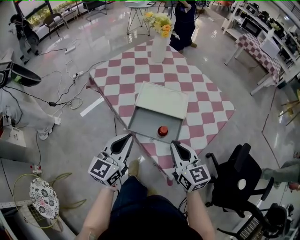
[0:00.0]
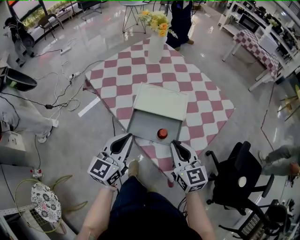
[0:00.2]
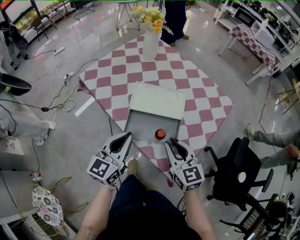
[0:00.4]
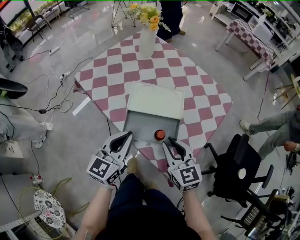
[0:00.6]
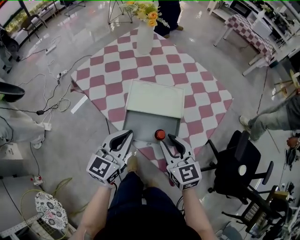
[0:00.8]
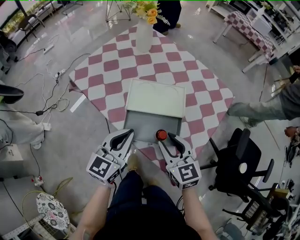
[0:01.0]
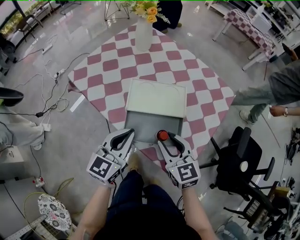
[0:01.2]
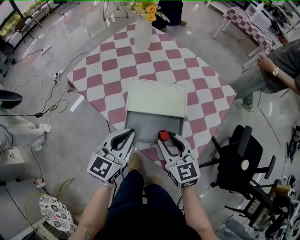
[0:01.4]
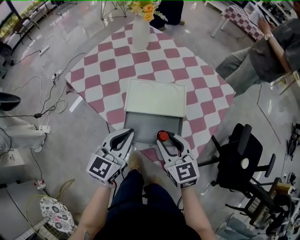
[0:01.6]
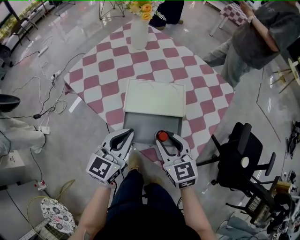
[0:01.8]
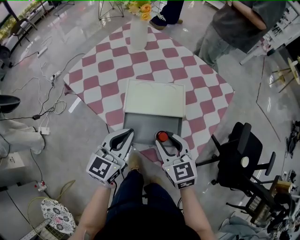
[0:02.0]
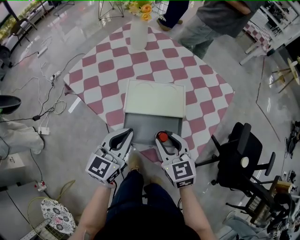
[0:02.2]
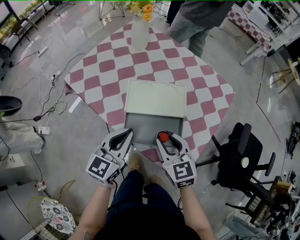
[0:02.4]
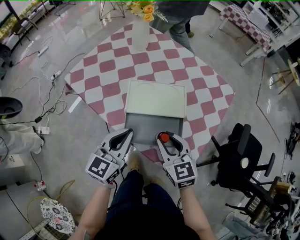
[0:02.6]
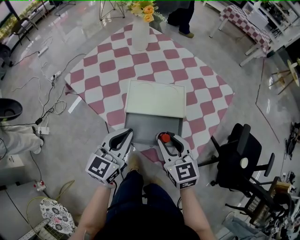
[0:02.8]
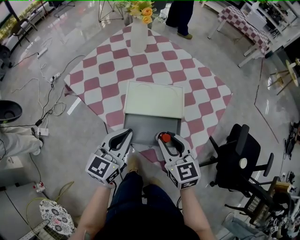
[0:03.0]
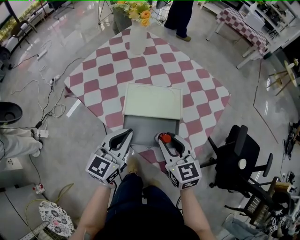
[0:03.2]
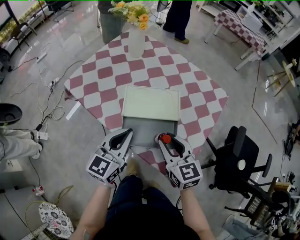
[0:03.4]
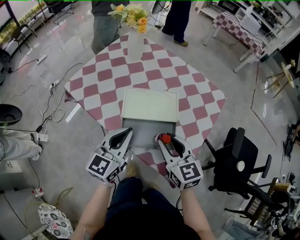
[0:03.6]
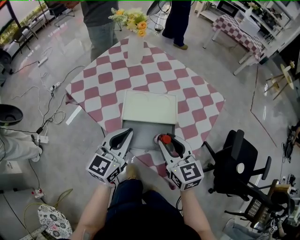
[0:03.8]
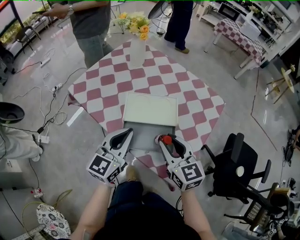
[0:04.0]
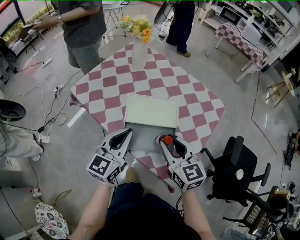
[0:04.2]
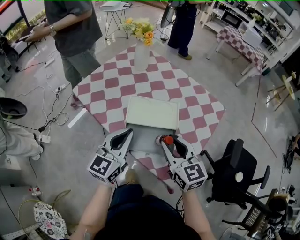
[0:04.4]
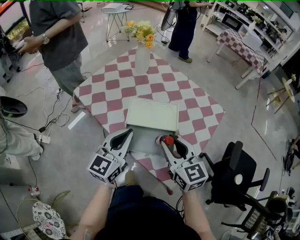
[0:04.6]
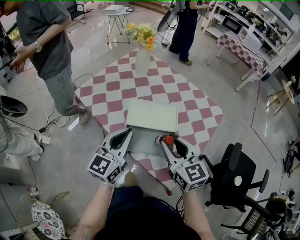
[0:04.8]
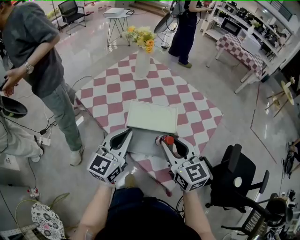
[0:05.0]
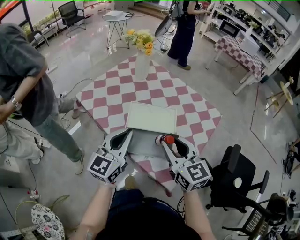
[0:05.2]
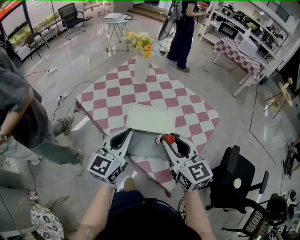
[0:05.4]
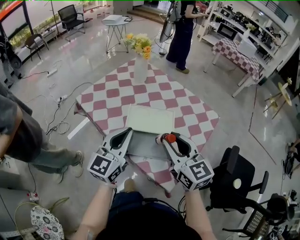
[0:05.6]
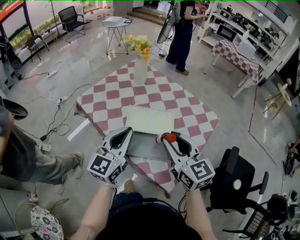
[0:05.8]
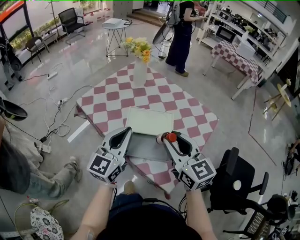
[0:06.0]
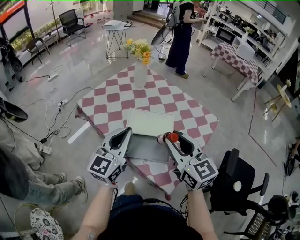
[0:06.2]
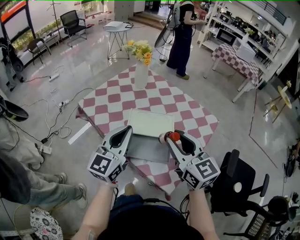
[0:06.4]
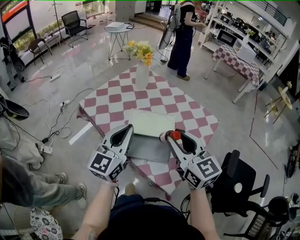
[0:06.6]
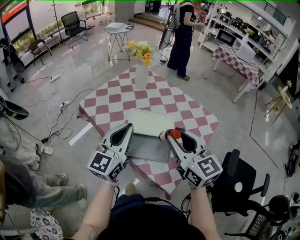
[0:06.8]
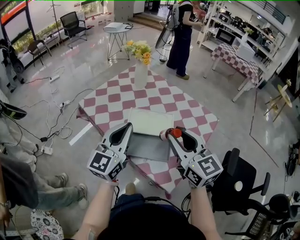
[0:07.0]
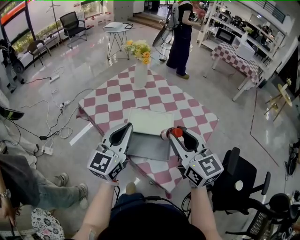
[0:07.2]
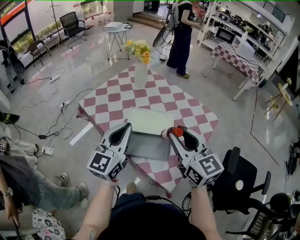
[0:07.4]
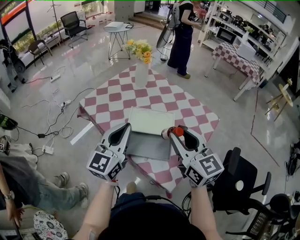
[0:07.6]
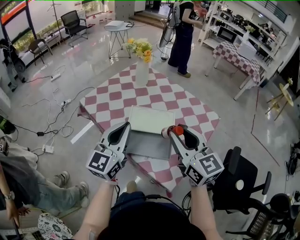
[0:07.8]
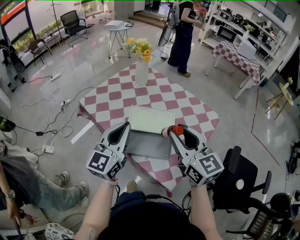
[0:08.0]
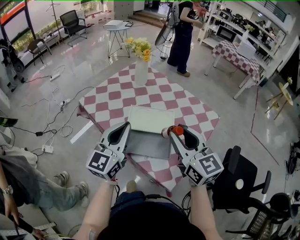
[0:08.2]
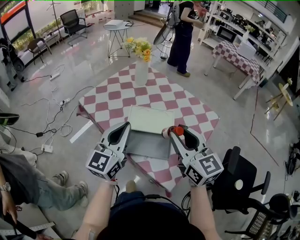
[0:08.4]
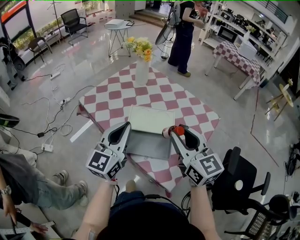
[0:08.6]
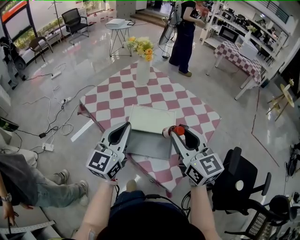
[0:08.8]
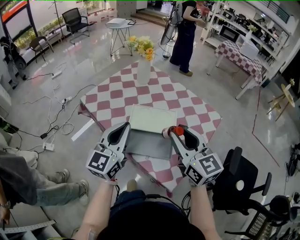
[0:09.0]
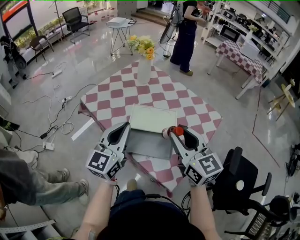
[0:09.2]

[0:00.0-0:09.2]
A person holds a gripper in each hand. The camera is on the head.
0:00.0 to 0:01.6: The right gripper moves forward and downward, about 10 cm, and opens its fingers, while the left gripper heads forward, covering approximately 10 cm.
0:01.6 to 0:03.0: The grippers stay close to where they were, moving slightly.
0:03.0 to 0:04.6: Both grippers travel together upward, approximately 10 cm.
0:04.6 to 0:06.2: The grippers both shift upward by about 10 cm.
0:06.2 to 0:09.2: There are only small adjustments of the grippers.

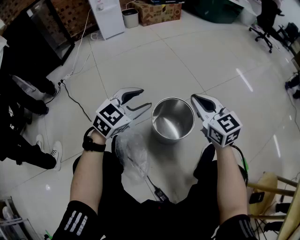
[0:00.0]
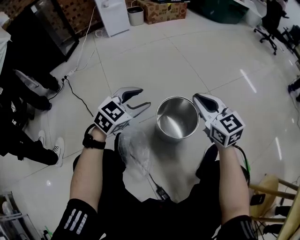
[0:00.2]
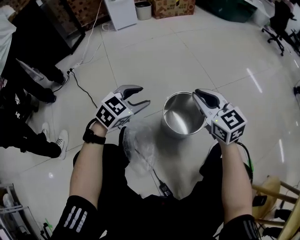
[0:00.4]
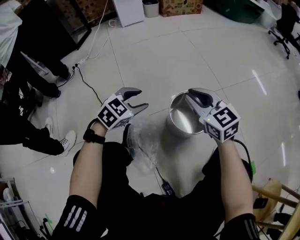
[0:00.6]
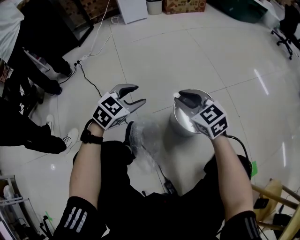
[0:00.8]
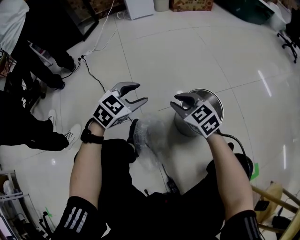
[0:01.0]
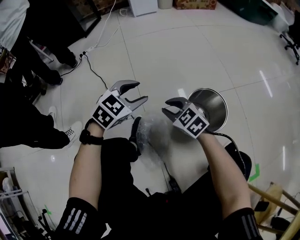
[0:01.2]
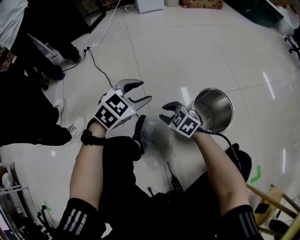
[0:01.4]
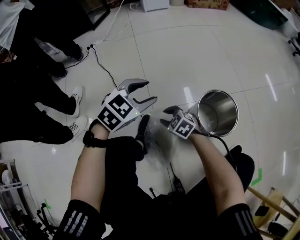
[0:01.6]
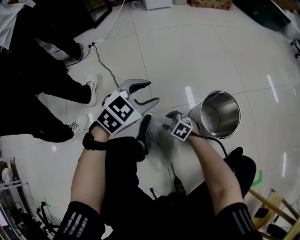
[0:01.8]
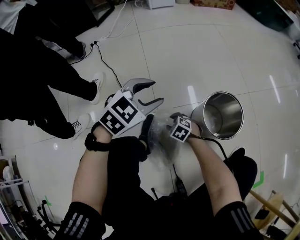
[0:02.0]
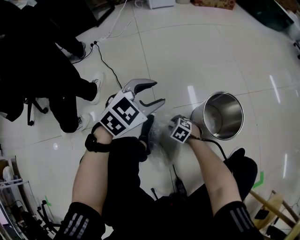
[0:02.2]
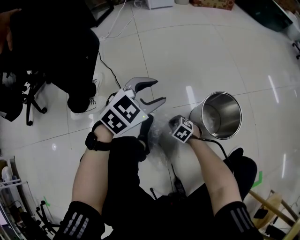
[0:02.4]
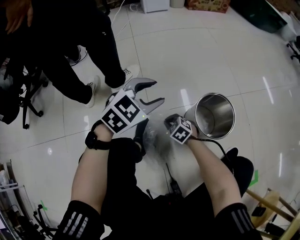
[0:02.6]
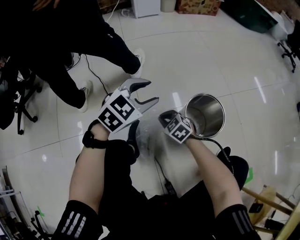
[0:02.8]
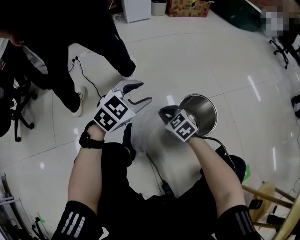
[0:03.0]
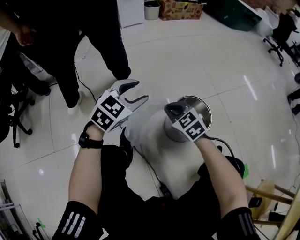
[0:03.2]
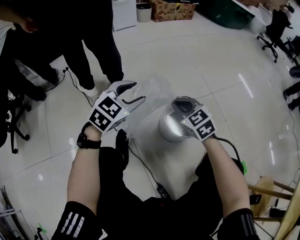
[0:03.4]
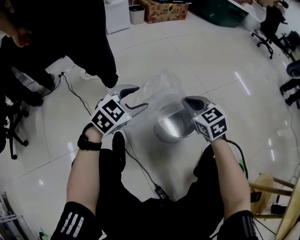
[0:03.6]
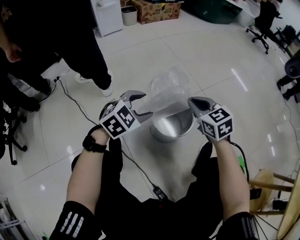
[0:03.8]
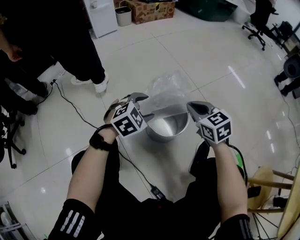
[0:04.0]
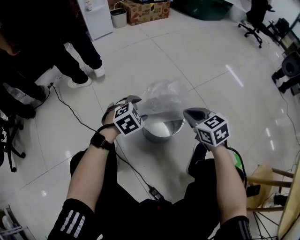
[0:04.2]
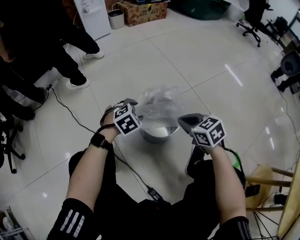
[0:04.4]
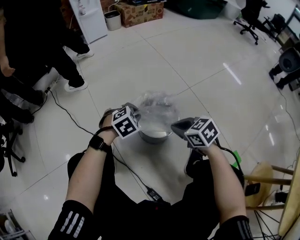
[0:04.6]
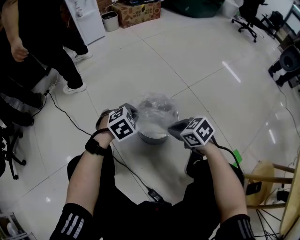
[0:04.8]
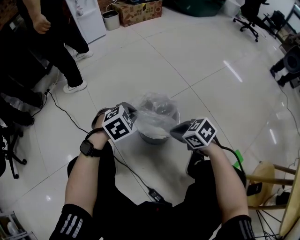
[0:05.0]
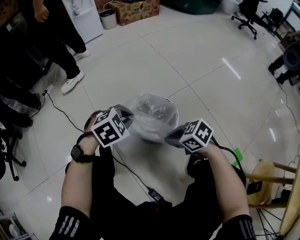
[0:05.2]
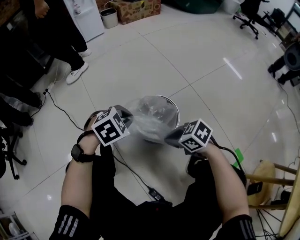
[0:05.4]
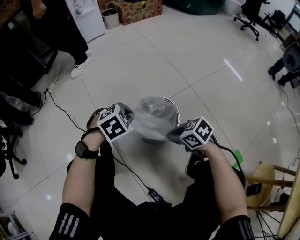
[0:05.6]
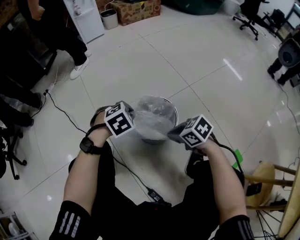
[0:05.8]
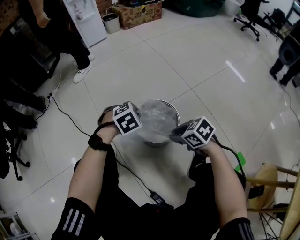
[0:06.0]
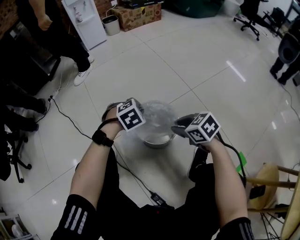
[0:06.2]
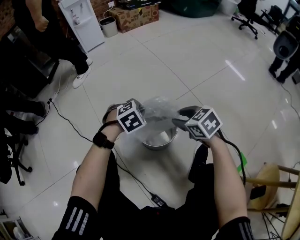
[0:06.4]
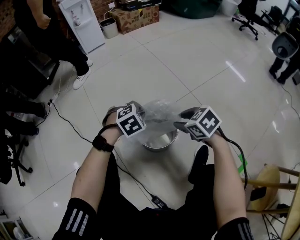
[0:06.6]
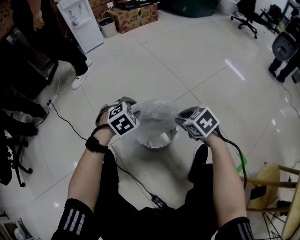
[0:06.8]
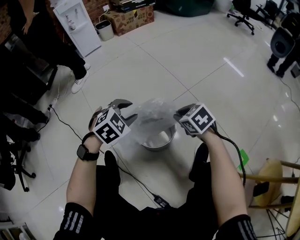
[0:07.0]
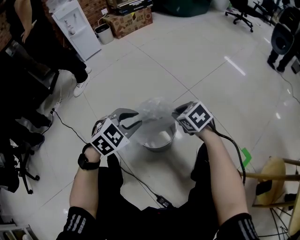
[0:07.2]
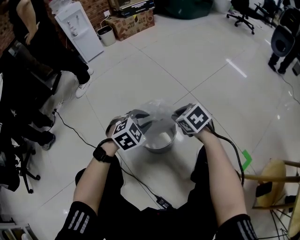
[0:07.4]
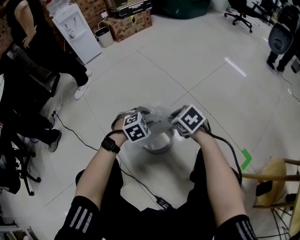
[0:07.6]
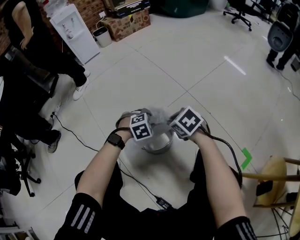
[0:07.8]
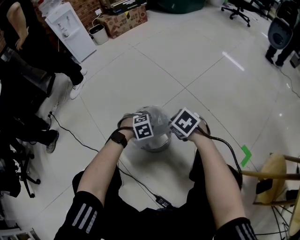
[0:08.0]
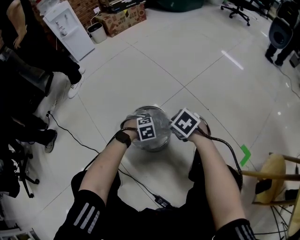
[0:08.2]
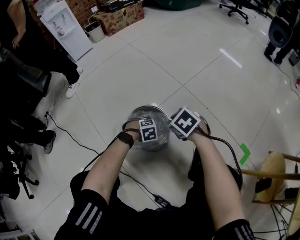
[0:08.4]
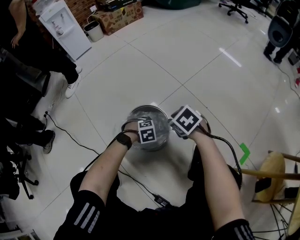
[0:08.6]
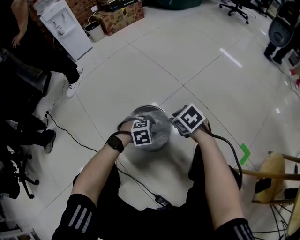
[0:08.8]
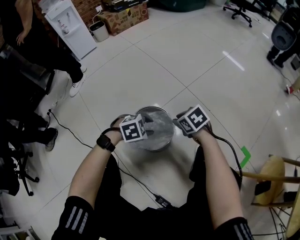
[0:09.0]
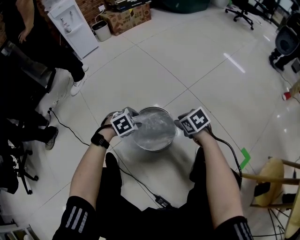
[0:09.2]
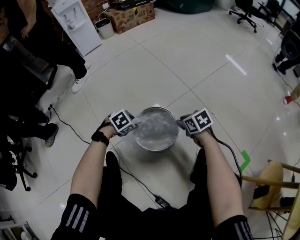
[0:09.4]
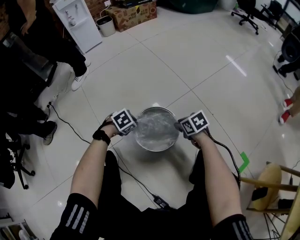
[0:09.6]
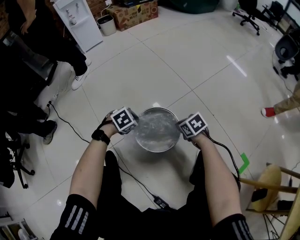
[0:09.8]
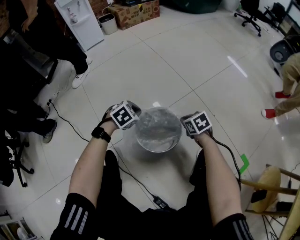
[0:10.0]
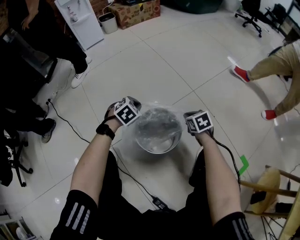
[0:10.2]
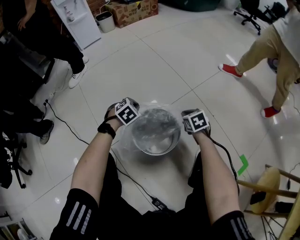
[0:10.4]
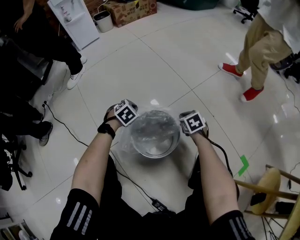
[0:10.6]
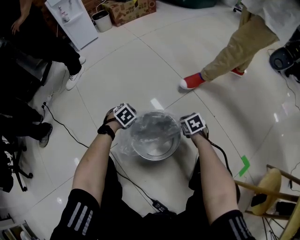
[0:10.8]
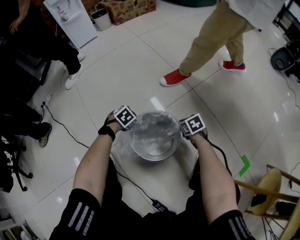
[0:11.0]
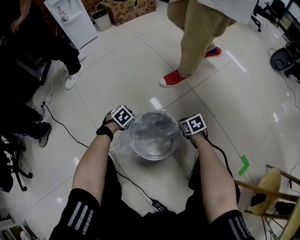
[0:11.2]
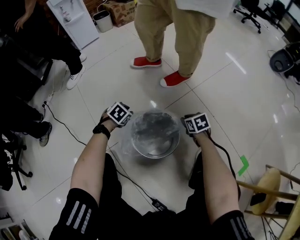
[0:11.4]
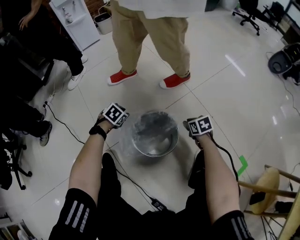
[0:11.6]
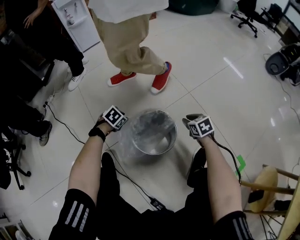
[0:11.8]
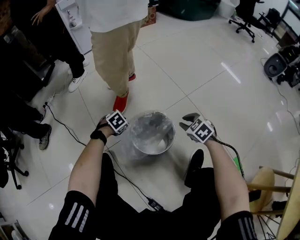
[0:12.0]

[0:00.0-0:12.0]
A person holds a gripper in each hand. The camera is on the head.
0:00.0 to 0:01.6: The right gripper changes place by approximately 40 cm, points its fingers about 30 degrees further downward, and opens up; the left gripper changes place by approximately 20 cm.
0:01.6 to 0:03.0: The left gripper moves approximately 5 cm; the right gripper is displaced upward and to the right by about 10 cm, and closes up.
0:03.0 to 0:04.4: The left gripper shifts approximately 20 cm to the right and downward, and rotates roughly 30 degrees, while the right gripper shifts roughly 25 cm to the right, and rotates about 30 degrees.
0:04.4 to 0:06.0: The left gripper closes its fingers, while the right gripper shifts roughly 5 cm downward, and swivels some 20 degrees.
0:06.0 to 0:07.6: The right gripper shifts roughly 10 cm forward and to the right, and opens, then closes again. The left gripper travels to the right by approximately 10 cm, travels upward and back again, about 10 cm each way, and opens its fingers.
0:07.6 to 0:09.0: The left gripper travels downward and back again, roughly 15 cm each way, while the right gripper moves downward, roughly 5 cm.
0:09.0 to 0:10.4: The left gripper swings up and down, about 5 cm each way, with 2 reversals, changes its angle by roughly 30 degrees, and closes up. Meanwhile the right gripper moves about 10 cm, and closes its fingers.
0:10.4 to 0:12.0: The left gripper moves backward and to the left, approximately 10 cm, and opens up, while the right gripper moves upward and backward, approximately 10 cm, swivels about 30 degrees, and opens its fingers.

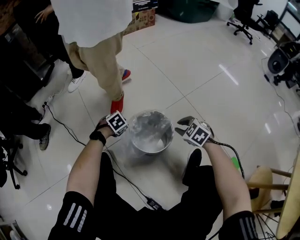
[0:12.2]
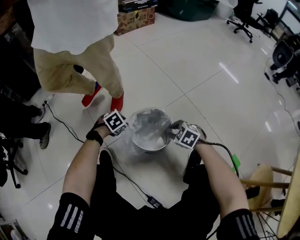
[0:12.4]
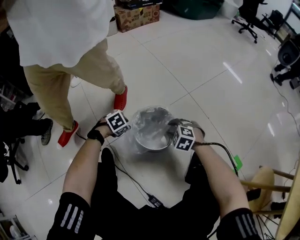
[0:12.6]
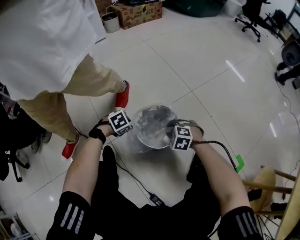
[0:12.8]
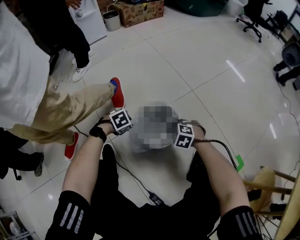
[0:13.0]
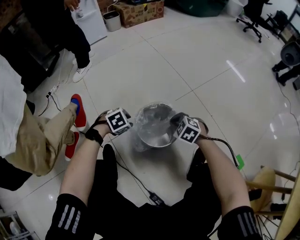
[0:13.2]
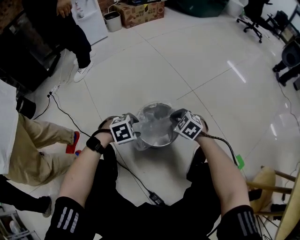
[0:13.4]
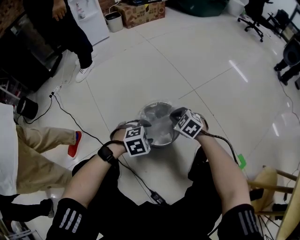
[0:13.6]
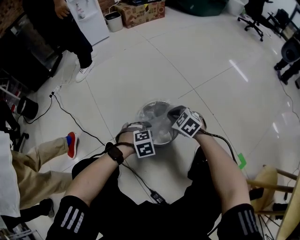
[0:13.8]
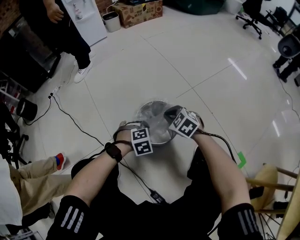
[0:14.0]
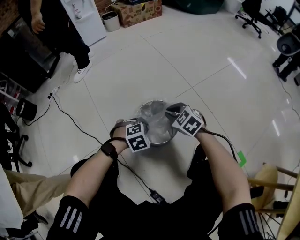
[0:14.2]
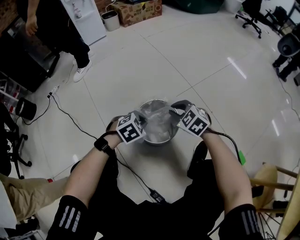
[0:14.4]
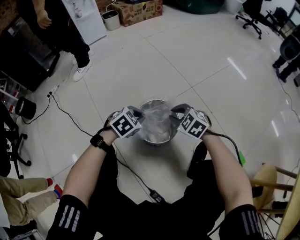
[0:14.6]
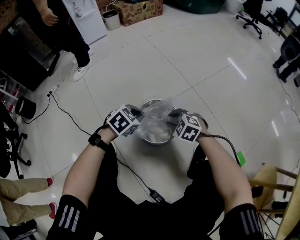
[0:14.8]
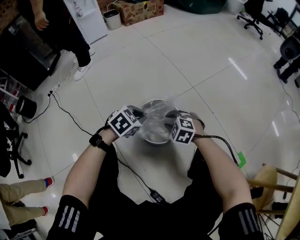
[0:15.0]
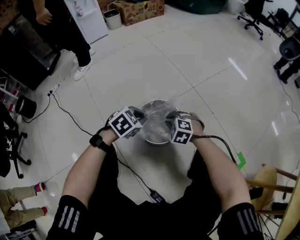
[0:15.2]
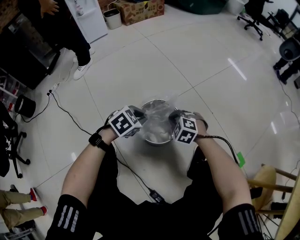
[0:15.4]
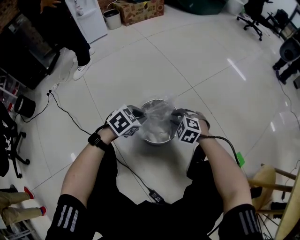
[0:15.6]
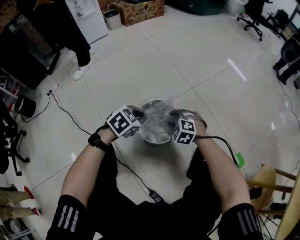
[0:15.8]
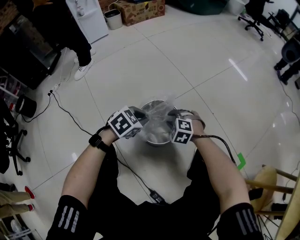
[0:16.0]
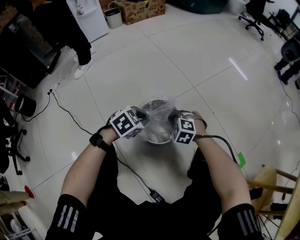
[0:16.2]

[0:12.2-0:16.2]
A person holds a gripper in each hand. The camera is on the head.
0:12.2 to 0:13.6: The left gripper changes place by about 20 cm, changes its angle by approximately 20 degrees, and opens its fingers. Meanwhile the right gripper shifts by about 5 cm, and closes.
0:13.6 to 0:14.8: The left gripper travels forward by roughly 10 cm, rotates some 30 degrees, and closes up; the right gripper opens up.
0:14.8 to 0:16.2: The right gripper closes its fingers.
